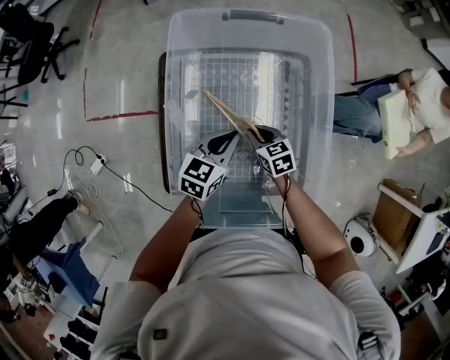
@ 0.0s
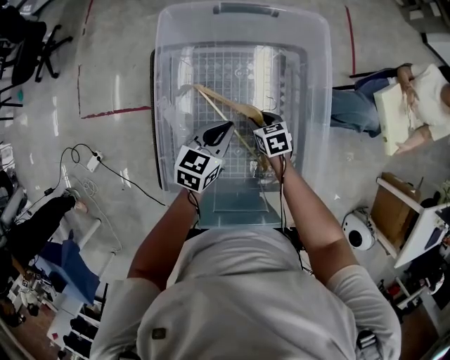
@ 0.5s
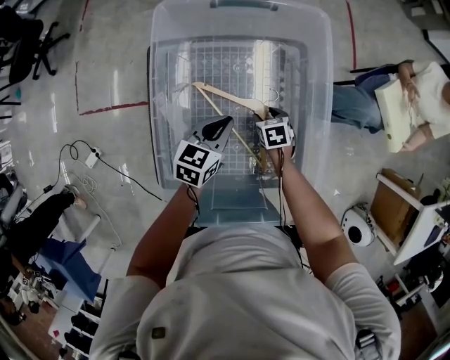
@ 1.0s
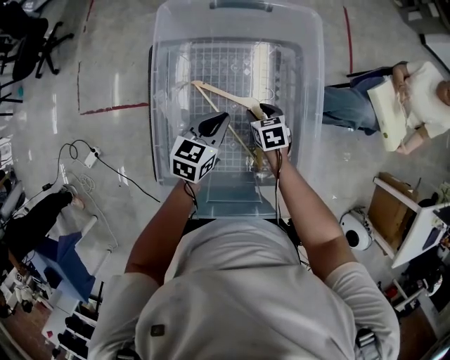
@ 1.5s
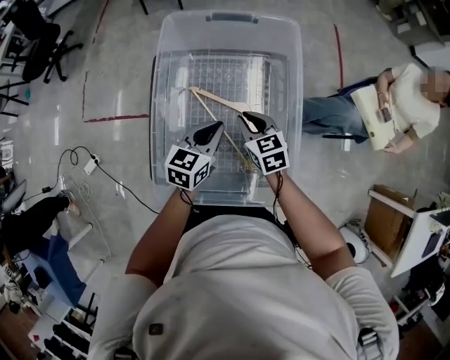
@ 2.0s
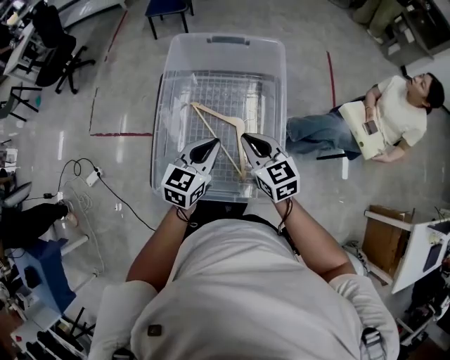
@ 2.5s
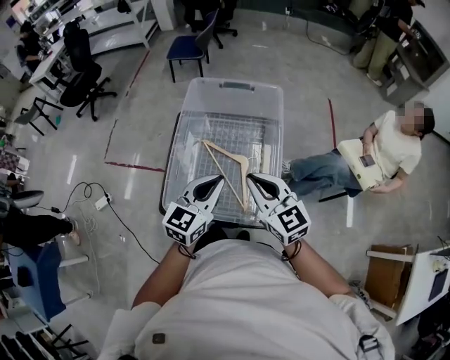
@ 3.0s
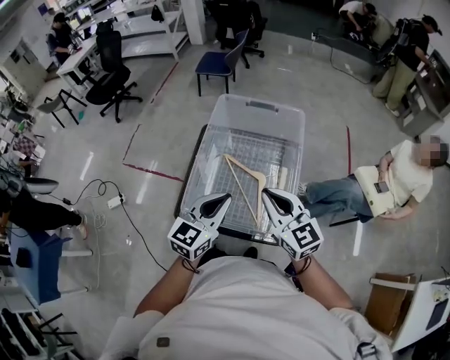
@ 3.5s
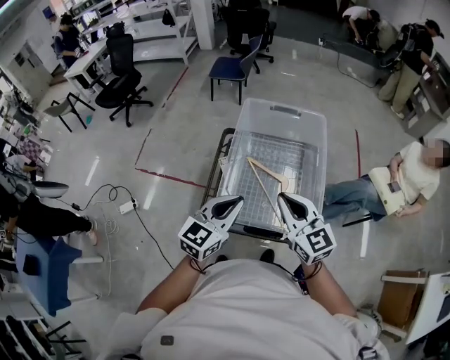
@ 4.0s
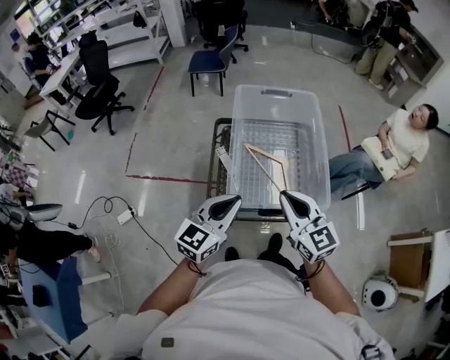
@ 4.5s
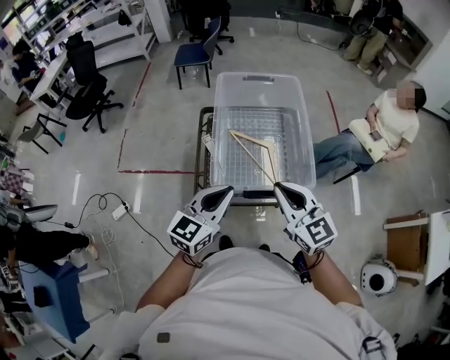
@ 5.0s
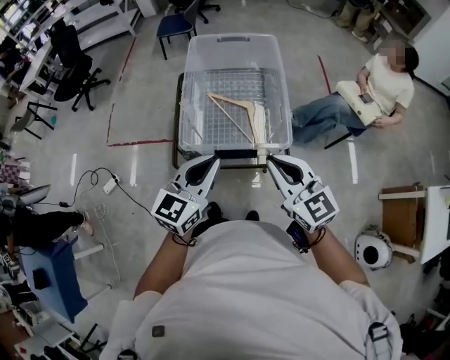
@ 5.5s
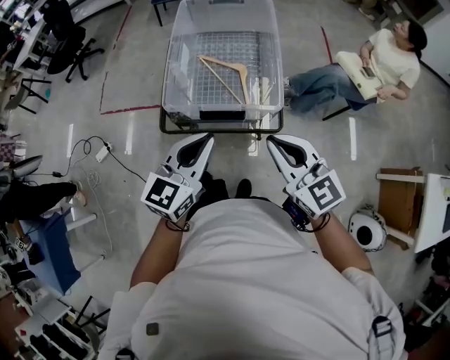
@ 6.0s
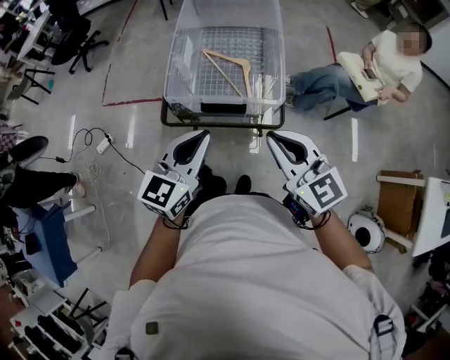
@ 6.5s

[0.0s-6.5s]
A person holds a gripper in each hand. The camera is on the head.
0.0s to 2.0s: The right gripper moves upward, some 15 cm, and opens, then closes once more, while the left gripper shifts approximately 5 cm upward.
2.0s to 4.5s: The left gripper goes roughly 40 cm backward, upward and to the left, and rotates about 20 degrees. The right gripper travels upward, backward and to the left by some 40 cm, and swivels about 30 degrees.
4.5s to 6.5s: The grippers both shift to the right and backward by about 25 cm.

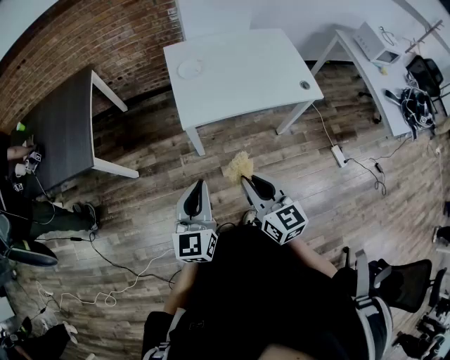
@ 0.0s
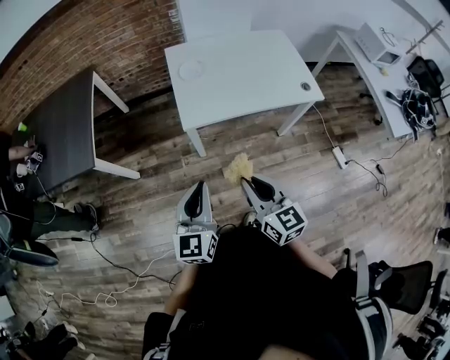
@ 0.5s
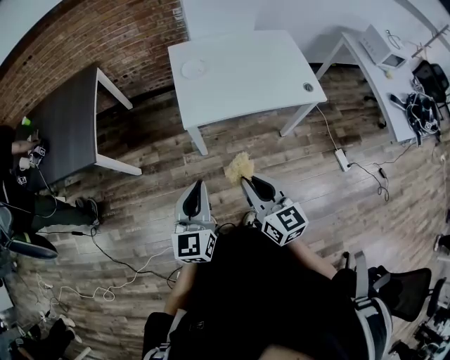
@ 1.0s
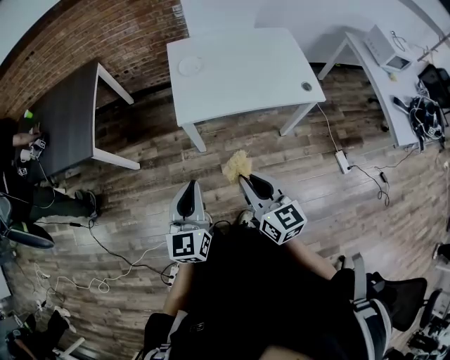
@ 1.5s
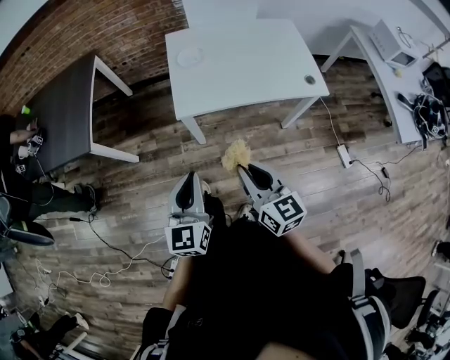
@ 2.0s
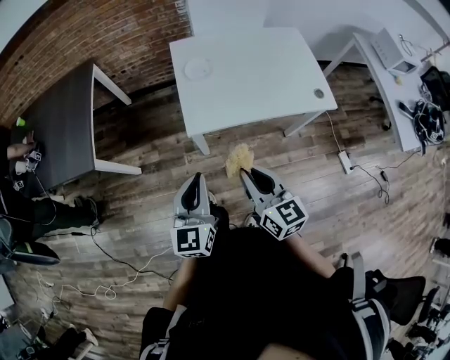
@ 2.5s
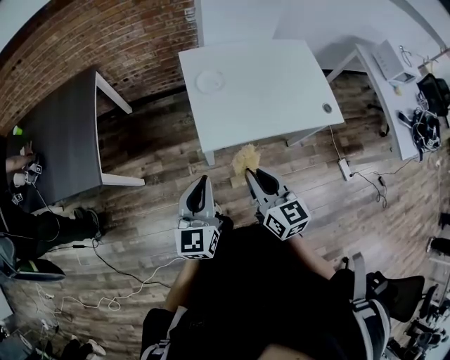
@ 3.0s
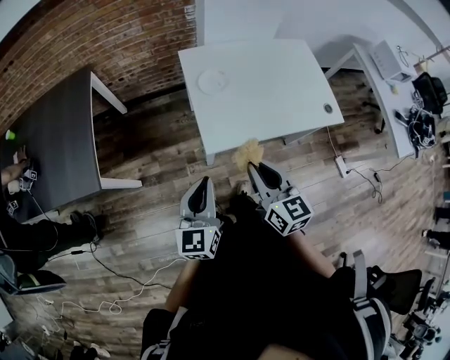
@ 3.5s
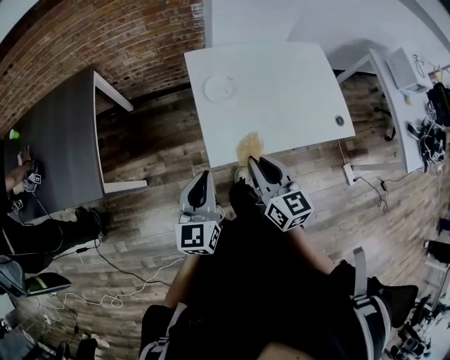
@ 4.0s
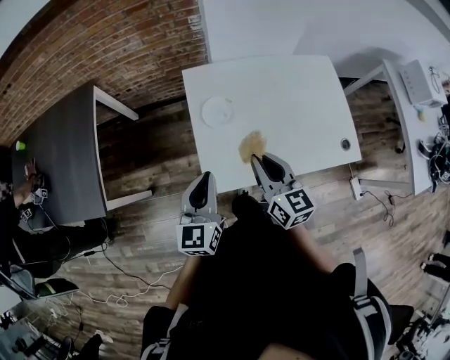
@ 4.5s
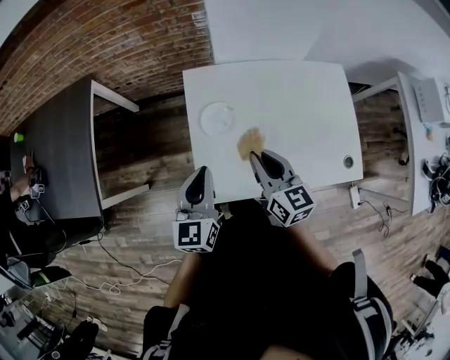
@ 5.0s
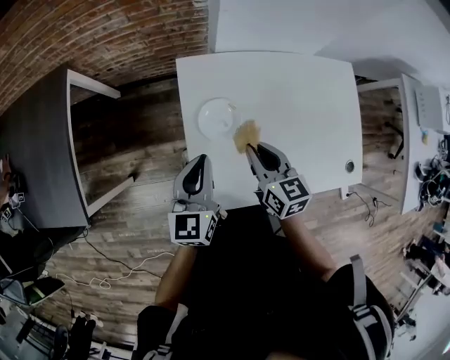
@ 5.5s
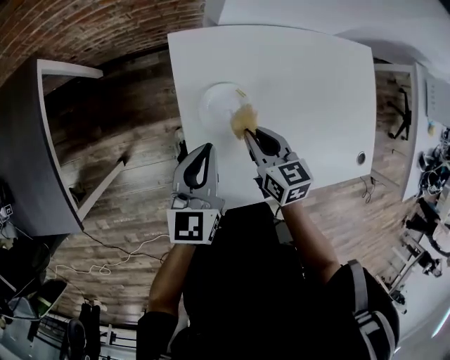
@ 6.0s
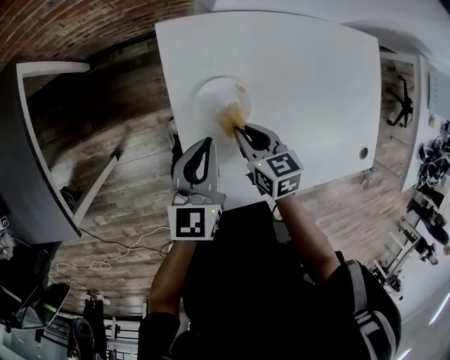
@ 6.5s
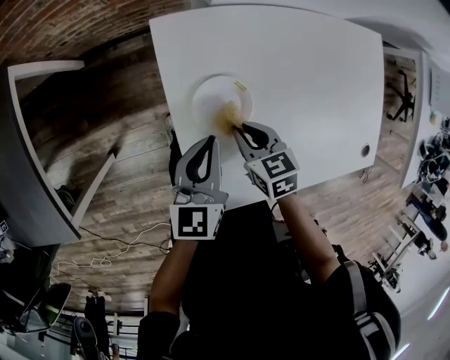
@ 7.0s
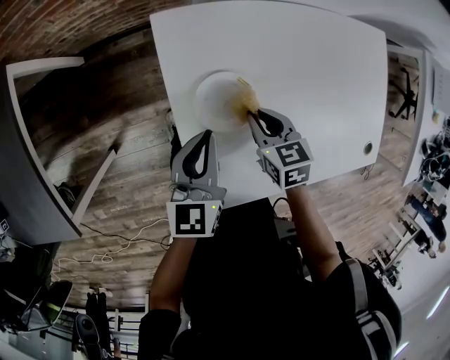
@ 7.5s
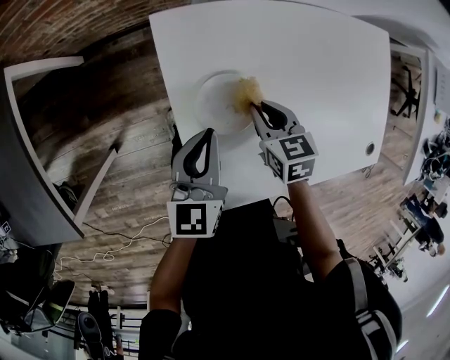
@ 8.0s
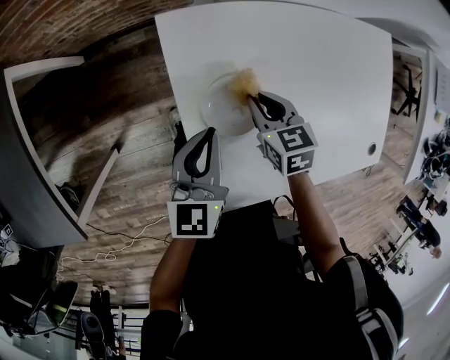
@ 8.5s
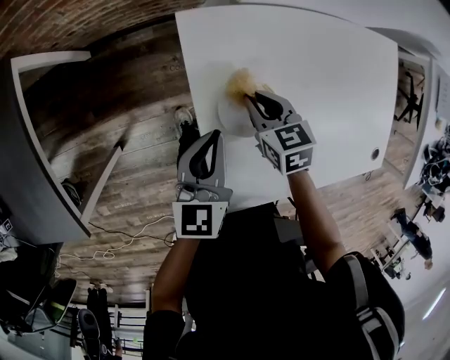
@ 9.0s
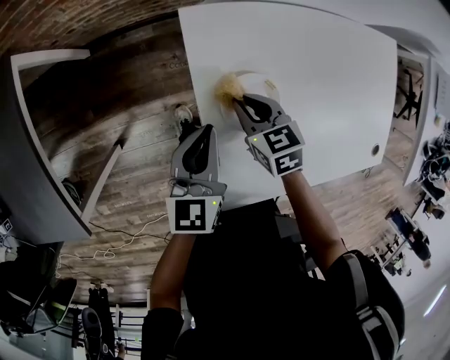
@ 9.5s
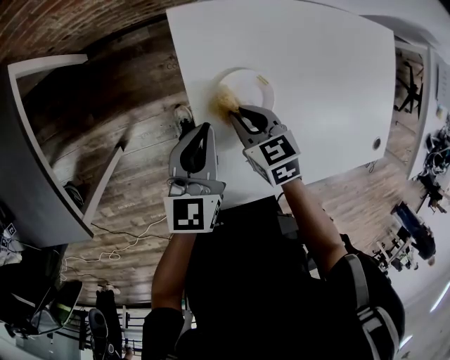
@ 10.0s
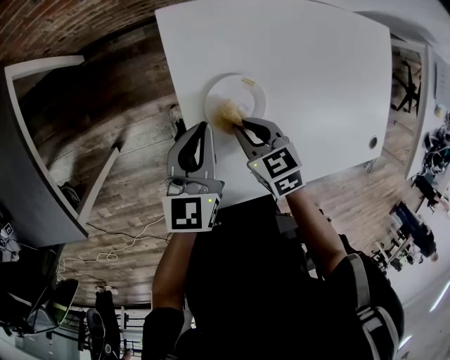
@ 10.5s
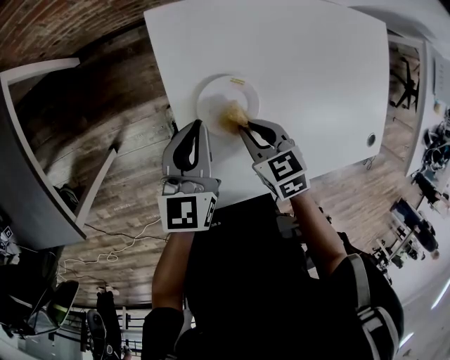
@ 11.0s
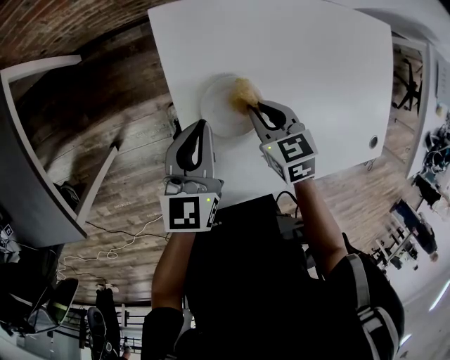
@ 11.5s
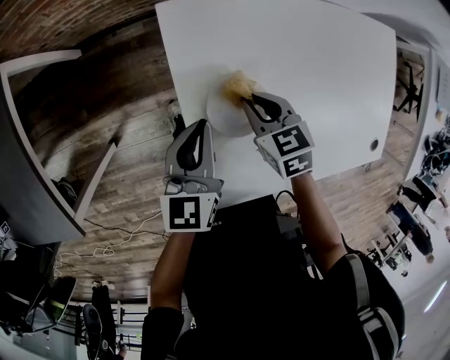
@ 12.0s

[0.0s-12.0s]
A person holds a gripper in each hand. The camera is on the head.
0.0s to 2.0s: The right gripper shifts some 5 cm to the right.
2.0s to 4.0s: The grippers both shift forward by approximately 25 cm.
4.0s to 6.0s: Both grippers travel together forward and downward, about 35 cm. The right gripper swivels about 30 degrees.
6.0s to 8.0s: The two grippers go some 5 cm downward.
8.0s to 10.0s: The right gripper shifts about 10 cm to the left.
10.0s to 12.0s: The right gripper shifts approximately 5 cm to the right.

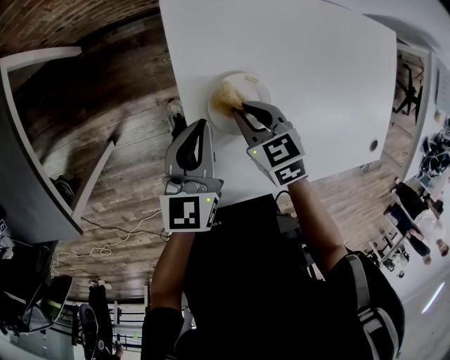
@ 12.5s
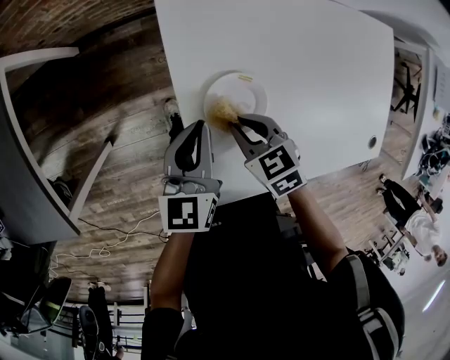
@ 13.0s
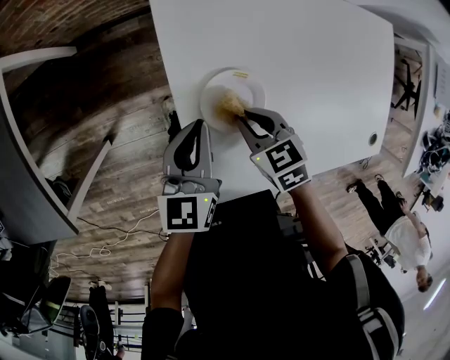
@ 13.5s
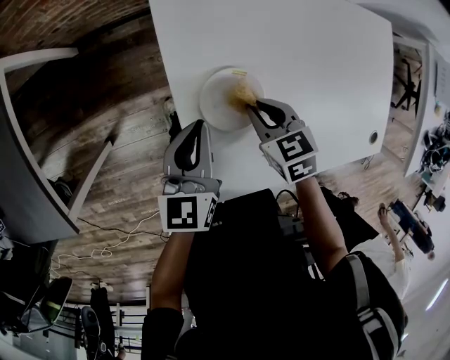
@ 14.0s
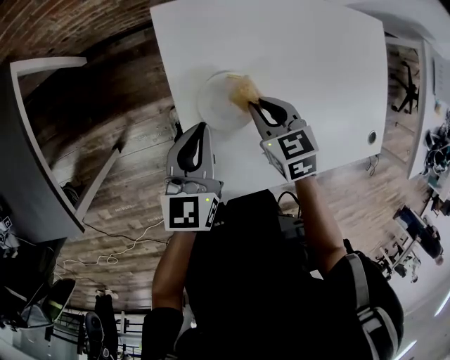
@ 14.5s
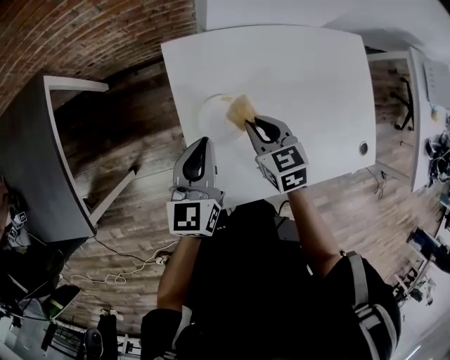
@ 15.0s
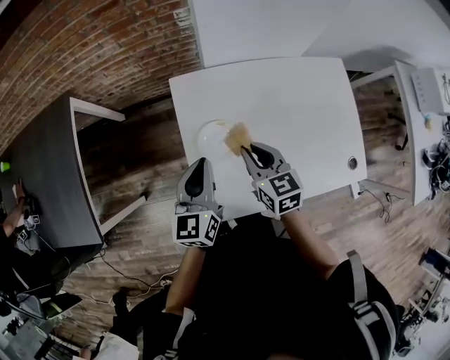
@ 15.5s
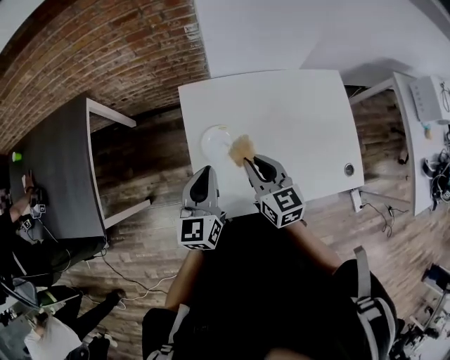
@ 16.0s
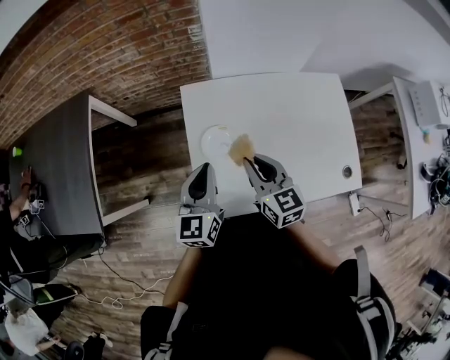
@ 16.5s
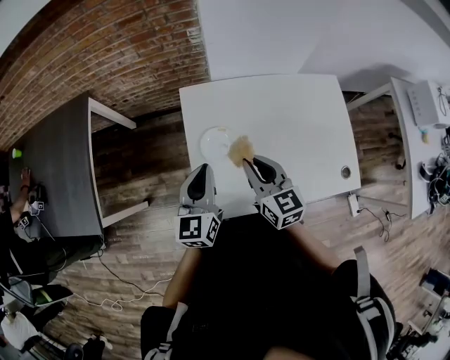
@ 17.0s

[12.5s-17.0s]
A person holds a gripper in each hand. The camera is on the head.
12.5s to 14.5s: The right gripper shifts approximately 5 cm to the right.
14.5s to 17.0s: The right gripper travels upward by about 20 cm, and points its fingers approximately 30 degrees further upward; the left gripper heads upward and backward, covering some 15 cm.

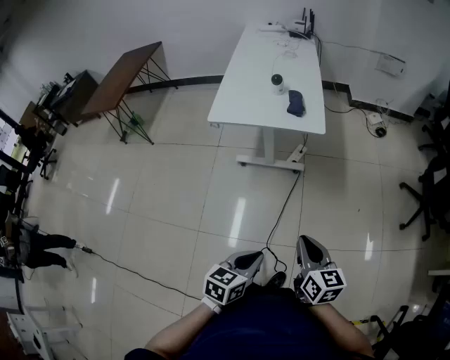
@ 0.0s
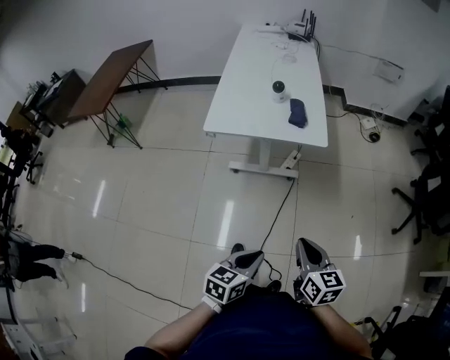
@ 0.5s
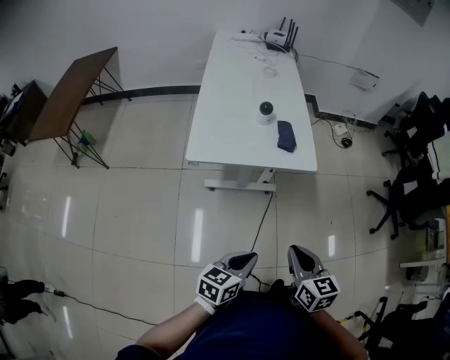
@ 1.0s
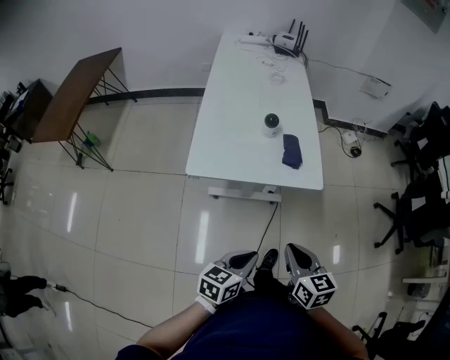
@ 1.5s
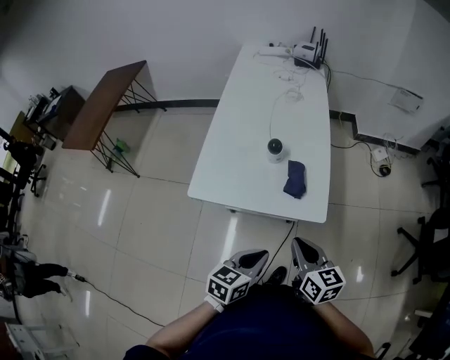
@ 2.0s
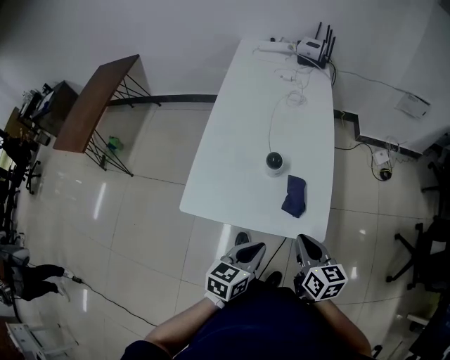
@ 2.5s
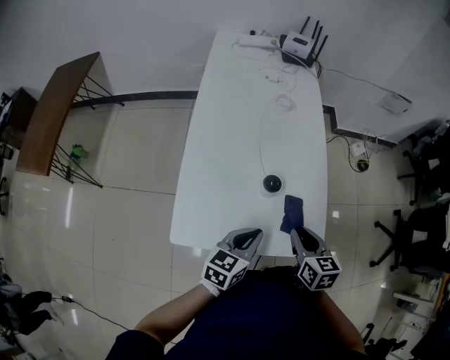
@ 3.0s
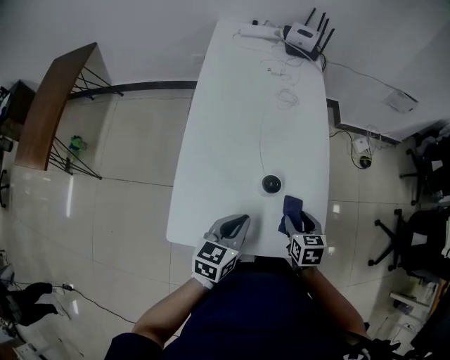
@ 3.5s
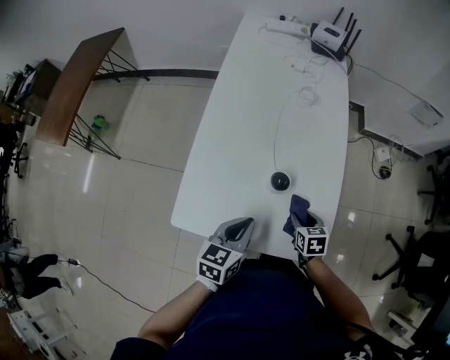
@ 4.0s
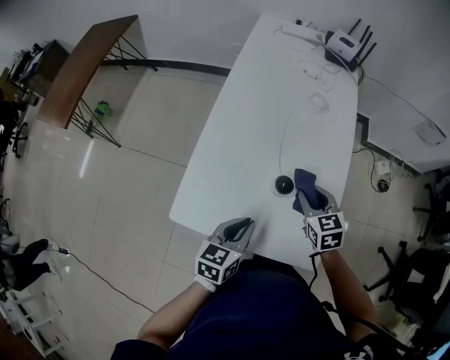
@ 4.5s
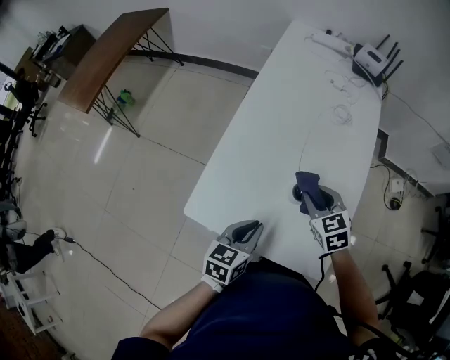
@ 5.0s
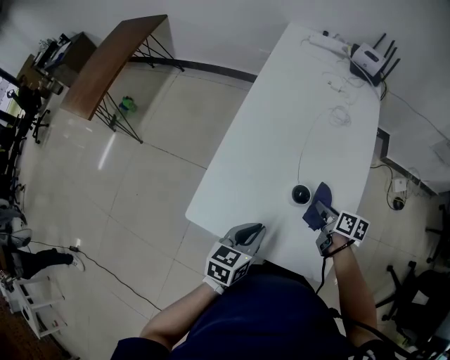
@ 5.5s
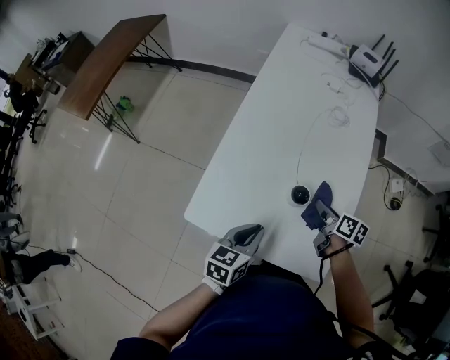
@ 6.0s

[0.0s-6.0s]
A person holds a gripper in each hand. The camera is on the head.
0.0s to 2.0s: The grippers both shift forward by approximately 35 cm.
2.0s to 4.0s: The left gripper is displaced forward and to the left by some 25 cm, while the right gripper shifts some 30 cm forward and downward, angles its fingers downward, by roughly 40 degrees, and opens.
4.0s to 6.0s: The right gripper heads forward and upward, covering about 10 cm, and swivels approximately 40 degrees.
